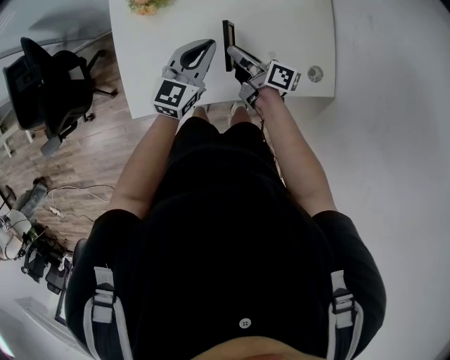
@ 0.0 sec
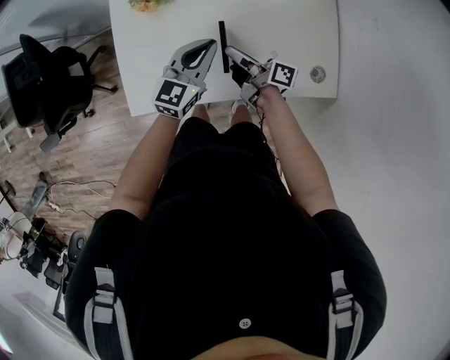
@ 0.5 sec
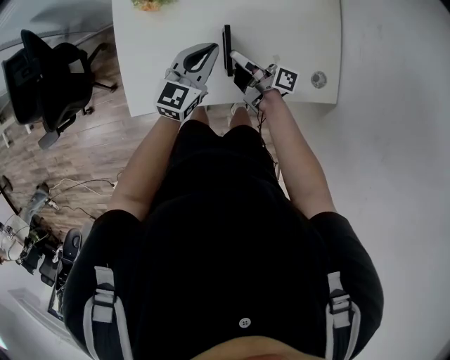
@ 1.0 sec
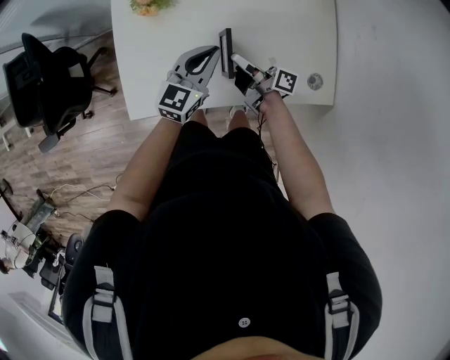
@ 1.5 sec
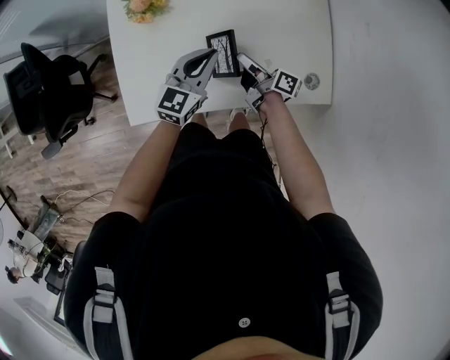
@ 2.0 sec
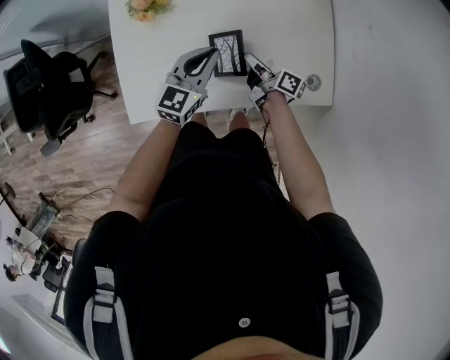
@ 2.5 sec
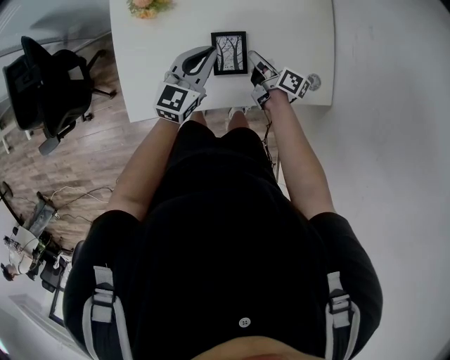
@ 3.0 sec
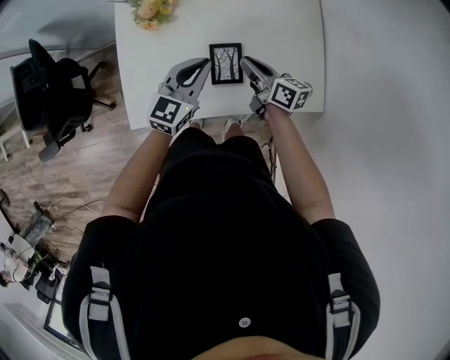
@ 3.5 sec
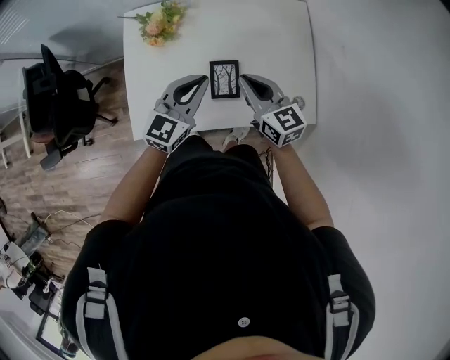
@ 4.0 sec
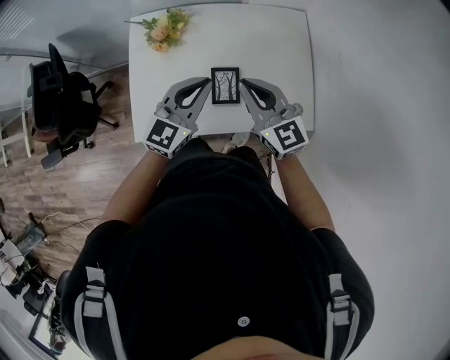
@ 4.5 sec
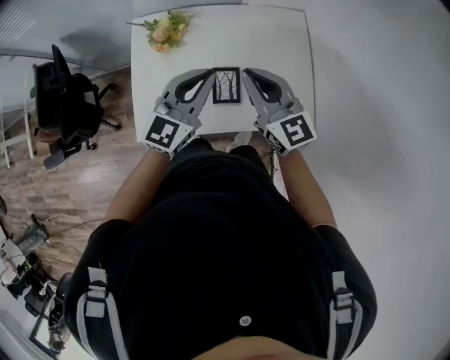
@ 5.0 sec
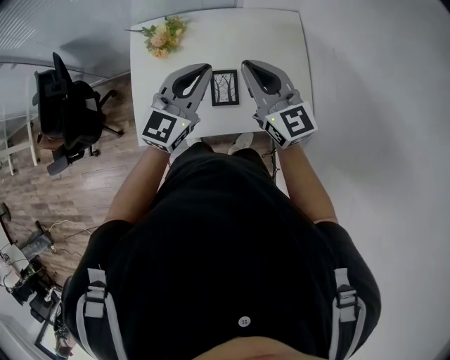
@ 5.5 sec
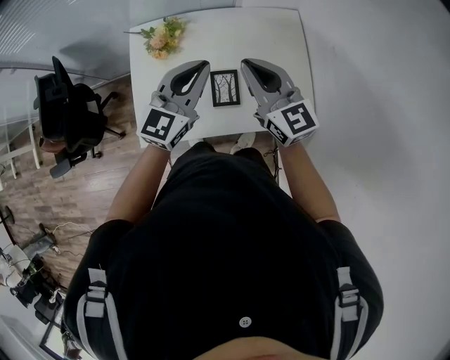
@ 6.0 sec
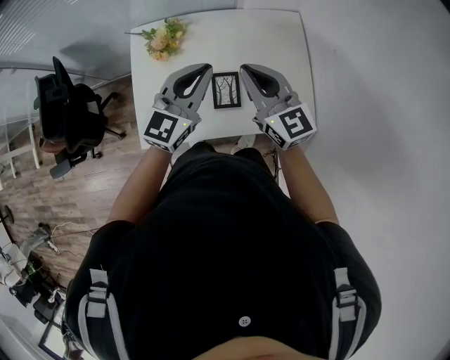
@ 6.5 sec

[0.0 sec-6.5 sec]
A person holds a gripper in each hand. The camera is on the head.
0.0 sec to 2.0 sec: The right gripper heads downward, covering approximately 5 cm.
2.0 sec to 4.5 sec: The left gripper heads upward, covering approximately 15 cm, while the right gripper travels upward by some 30 cm, and rotates around the line of its fingers by about 80 degrees, counterclockwise from behind.
4.5 sec to 6.5 sec: The right gripper moves roughly 5 cm; the left gripper is displaced upward by roughly 5 cm.

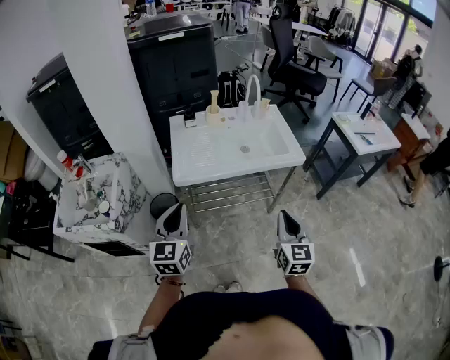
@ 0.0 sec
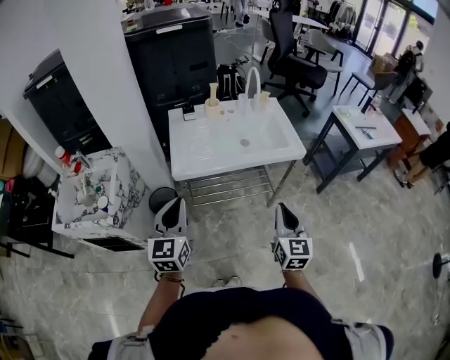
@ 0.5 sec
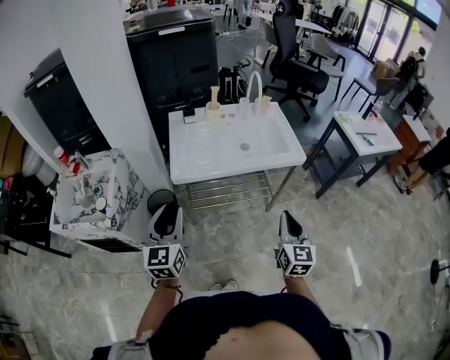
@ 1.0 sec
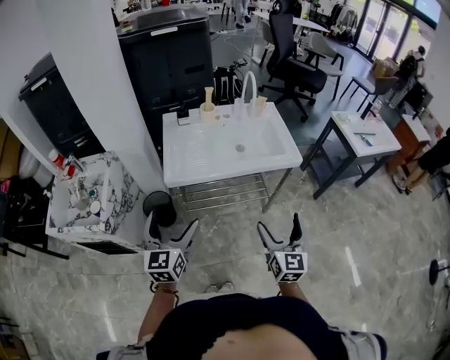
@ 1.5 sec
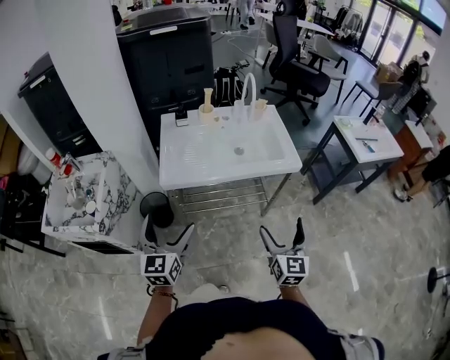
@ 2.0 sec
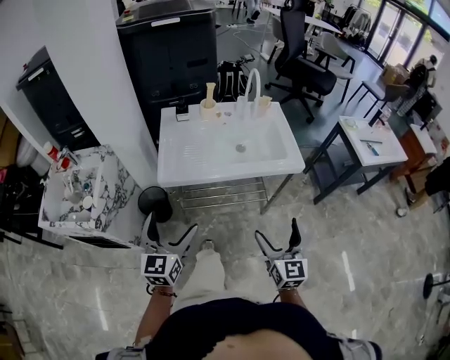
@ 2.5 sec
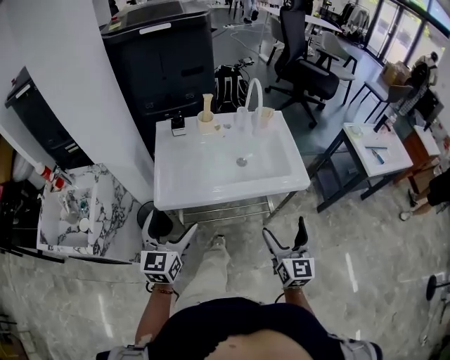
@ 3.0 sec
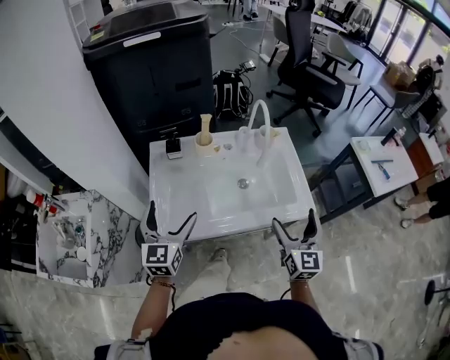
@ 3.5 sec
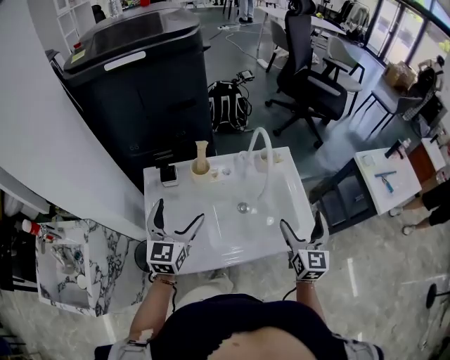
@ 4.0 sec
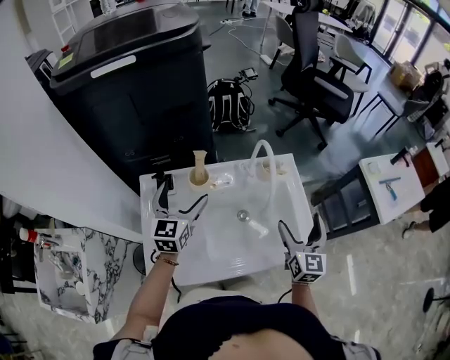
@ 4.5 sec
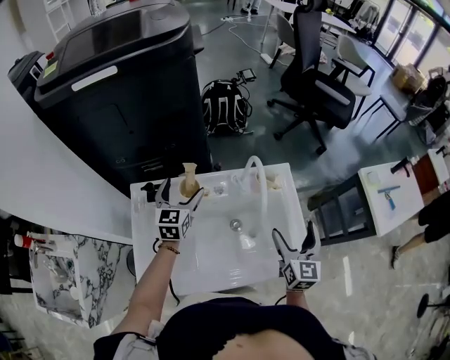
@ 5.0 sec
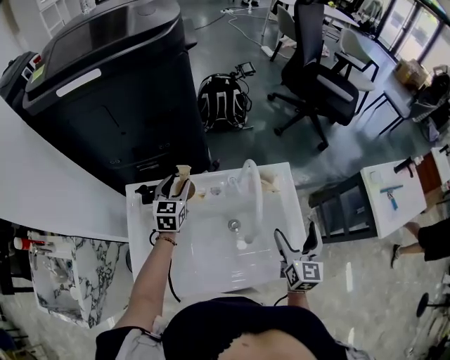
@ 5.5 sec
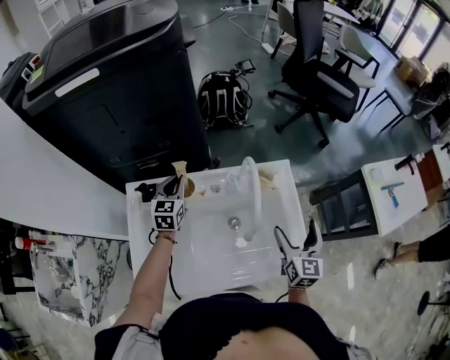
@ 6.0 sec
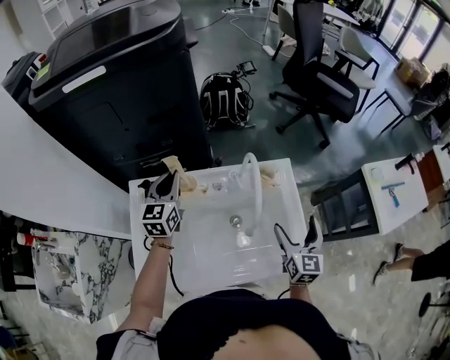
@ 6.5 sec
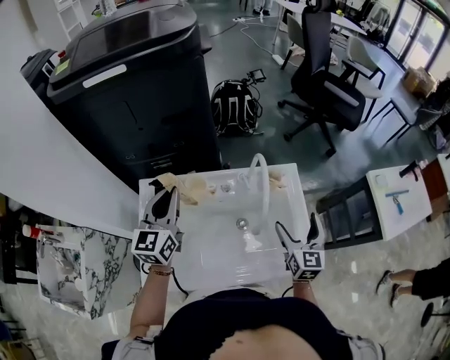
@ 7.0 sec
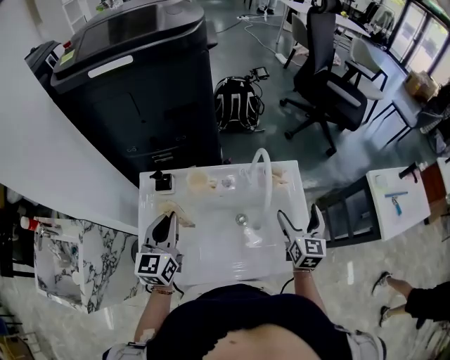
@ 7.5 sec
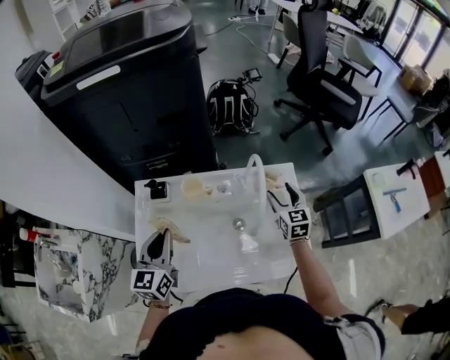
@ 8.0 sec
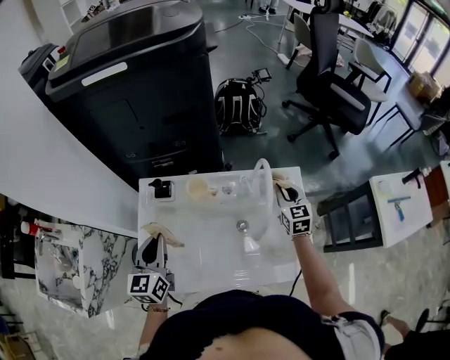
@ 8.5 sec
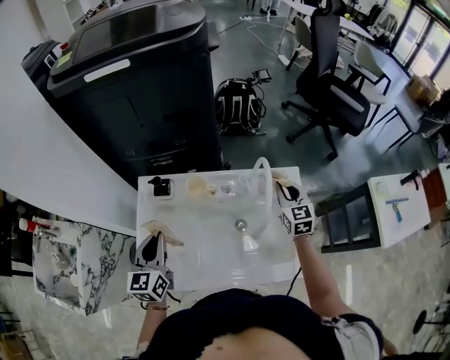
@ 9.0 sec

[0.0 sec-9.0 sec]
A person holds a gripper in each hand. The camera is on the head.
0.0 sec to 2.0 sec: The left gripper changes place by some 5 cm, and opens its fingers, while the right gripper moves roughly 5 cm, and opens.
2.0 sec to 4.5 sec: The two grippers travel together, forward, about 50 cm.
4.5 sec to 7.0 sec: The right gripper moves forward, about 5 cm, while the left gripper shifts some 5 cm upward, and closes up.
7.0 sec to 9.0 sec: The left gripper goes approximately 15 cm backward, downward and to the left; the right gripper moves forward, approximately 15 cm, and closes up.

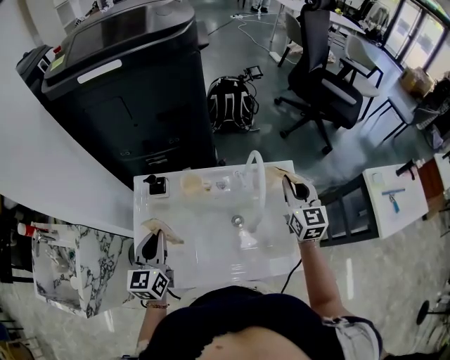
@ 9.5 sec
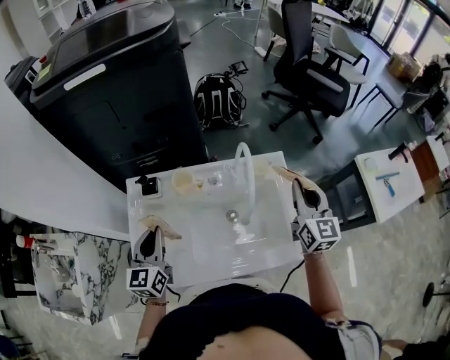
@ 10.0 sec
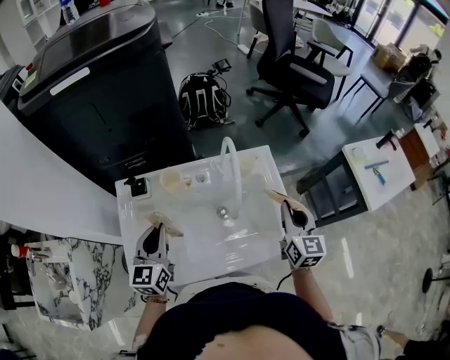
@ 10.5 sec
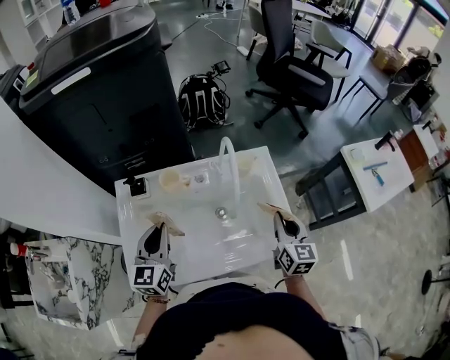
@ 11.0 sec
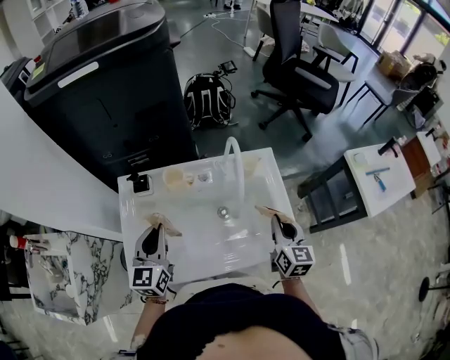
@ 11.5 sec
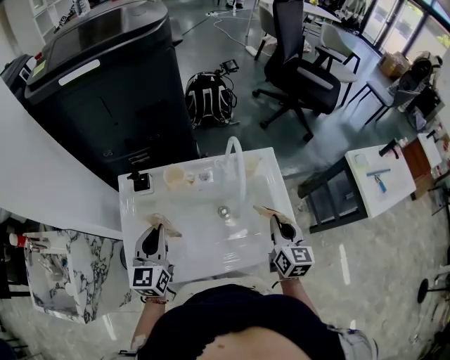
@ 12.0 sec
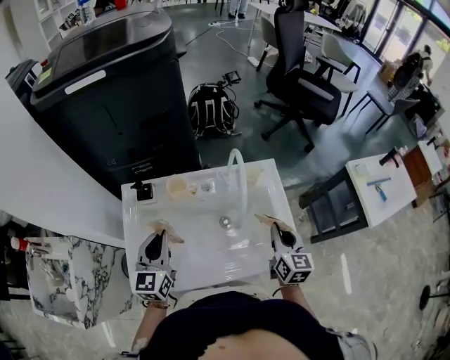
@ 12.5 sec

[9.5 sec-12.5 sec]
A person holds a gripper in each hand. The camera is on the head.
9.5 sec to 11.0 sec: The left gripper heads to the right, covering about 5 cm, while the right gripper heads backward, covering approximately 15 cm, and turns by about 20 degrees.
11.0 sec to 12.5 sec: The grippers move only a little.

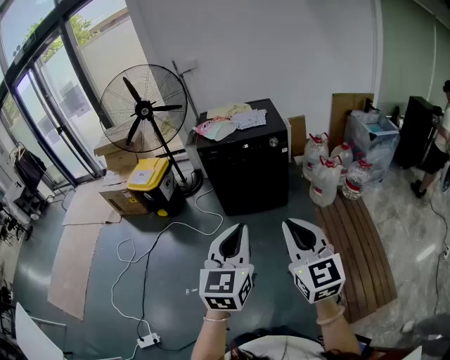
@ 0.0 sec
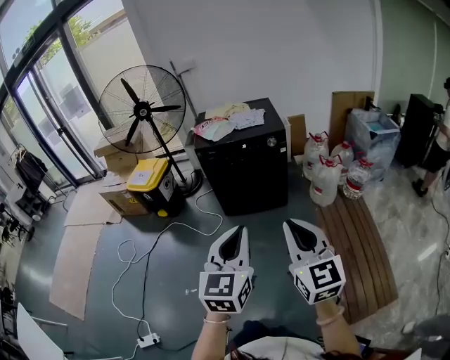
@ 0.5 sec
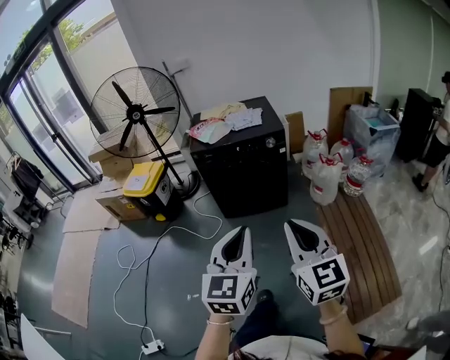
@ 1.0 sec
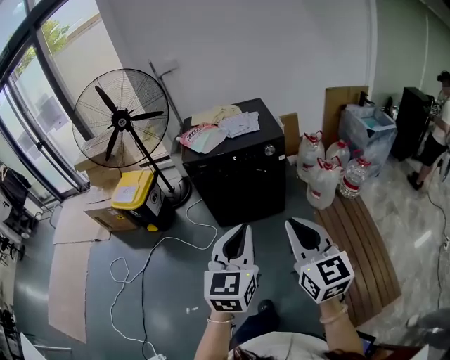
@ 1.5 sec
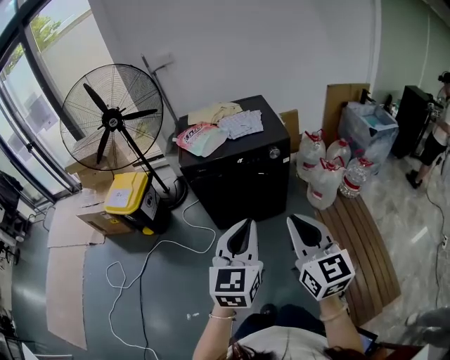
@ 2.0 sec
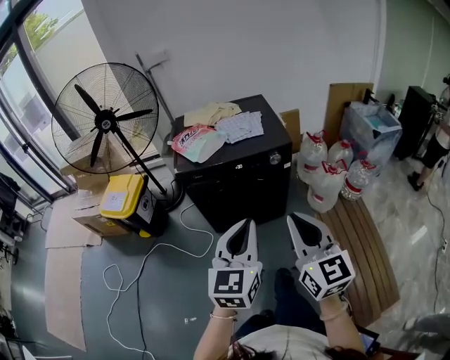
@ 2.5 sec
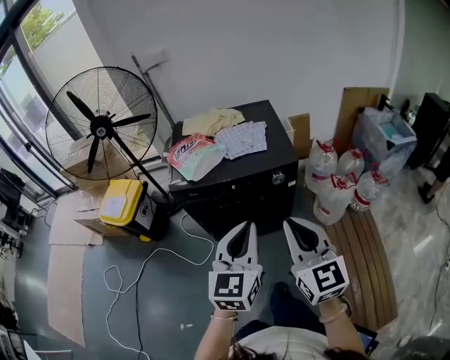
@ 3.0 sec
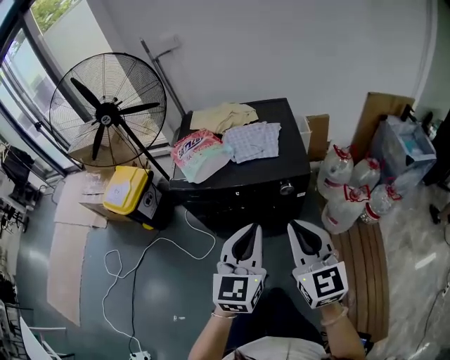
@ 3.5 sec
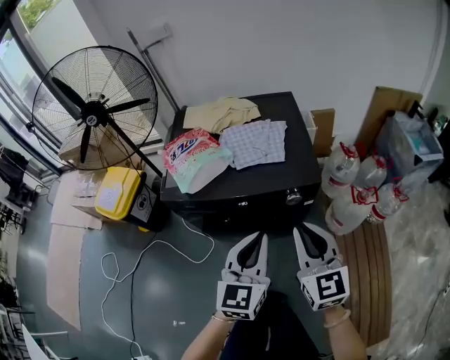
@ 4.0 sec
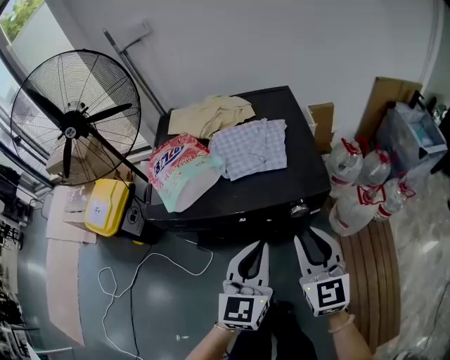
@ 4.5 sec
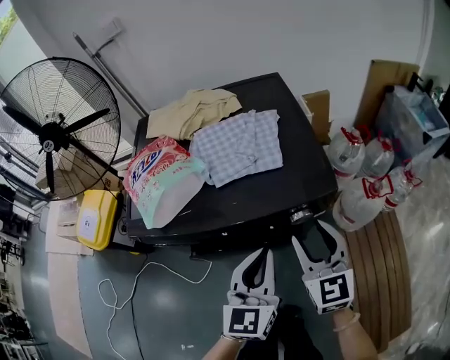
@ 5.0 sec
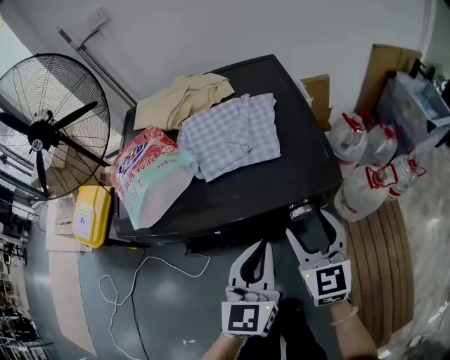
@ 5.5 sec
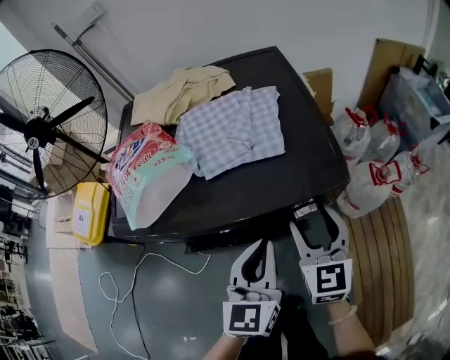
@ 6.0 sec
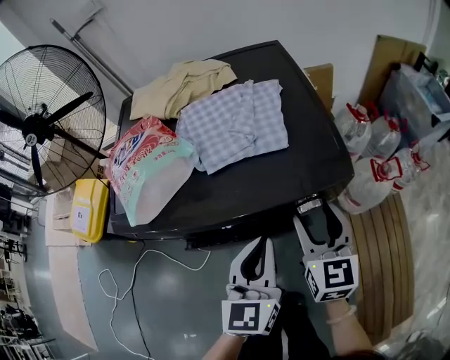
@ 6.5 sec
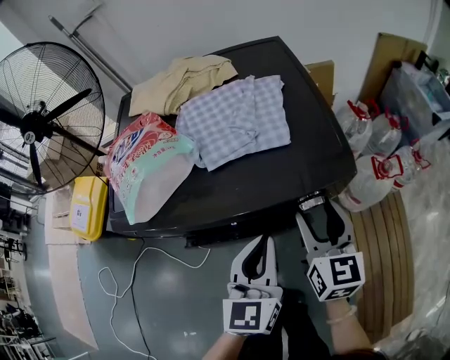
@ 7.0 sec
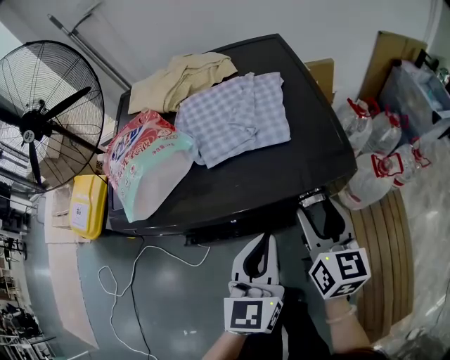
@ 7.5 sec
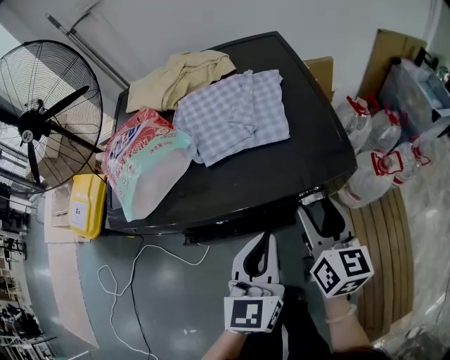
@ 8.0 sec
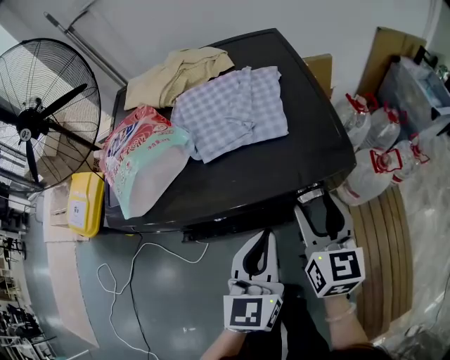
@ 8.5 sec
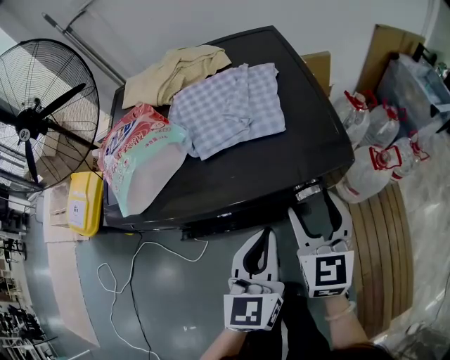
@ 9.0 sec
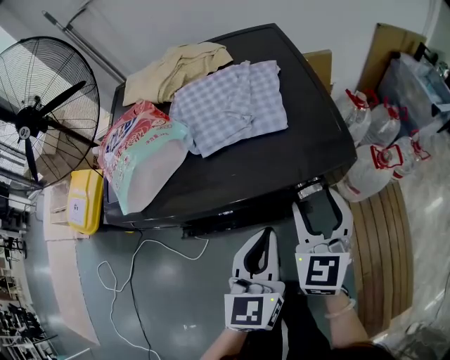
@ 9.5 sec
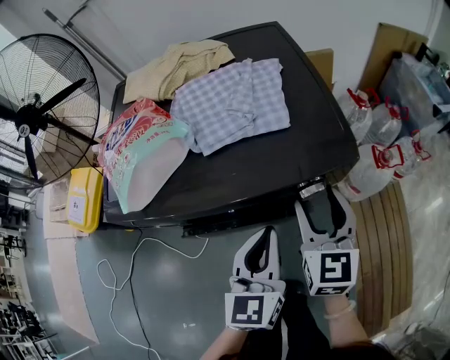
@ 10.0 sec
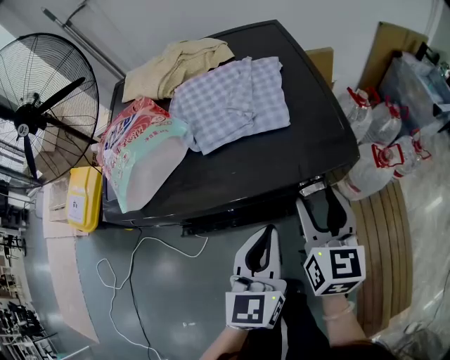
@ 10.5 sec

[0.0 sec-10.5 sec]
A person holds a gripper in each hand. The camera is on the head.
0.0 sec to 2.0 sec: The grippers both shift forward by some 25 cm.
2.0 sec to 4.0 sec: Both grippers travel together forward, approximately 35 cm.
4.0 sec to 6.5 sec: The grippers both shift downward and forward by about 25 cm. The right gripper opens up.
6.5 sec to 8.5 sec: The grippers make only small movements.
